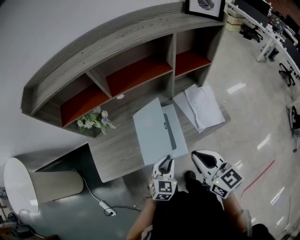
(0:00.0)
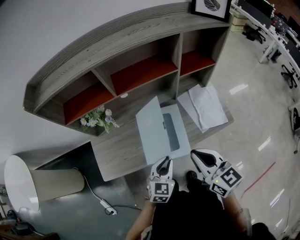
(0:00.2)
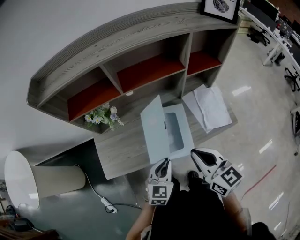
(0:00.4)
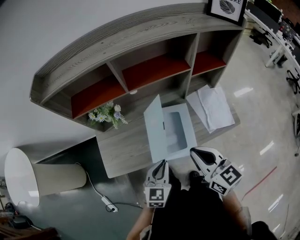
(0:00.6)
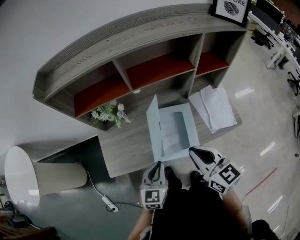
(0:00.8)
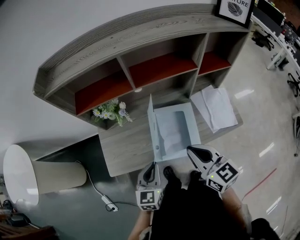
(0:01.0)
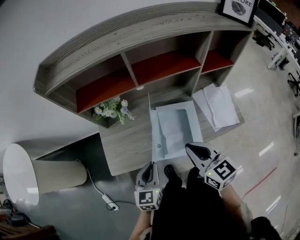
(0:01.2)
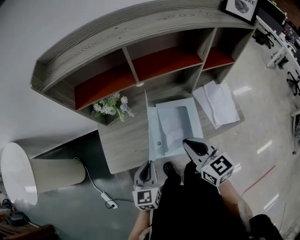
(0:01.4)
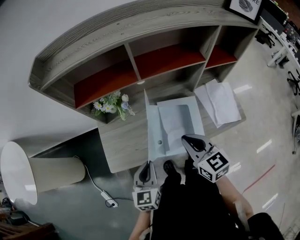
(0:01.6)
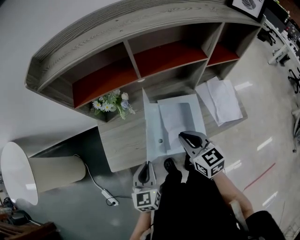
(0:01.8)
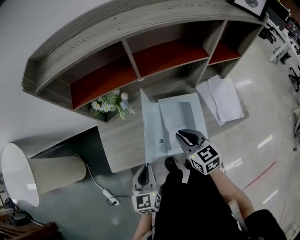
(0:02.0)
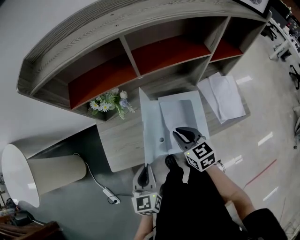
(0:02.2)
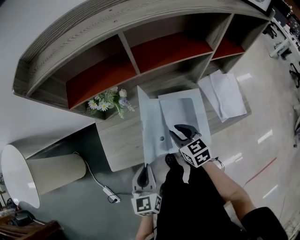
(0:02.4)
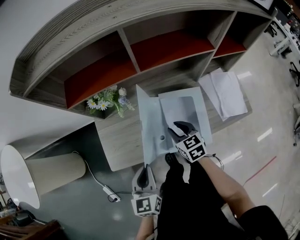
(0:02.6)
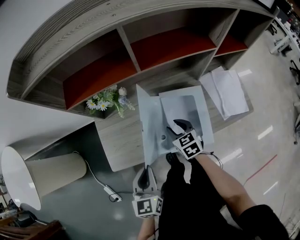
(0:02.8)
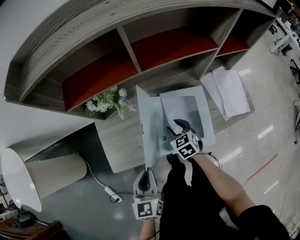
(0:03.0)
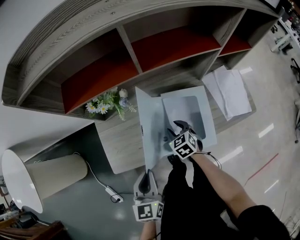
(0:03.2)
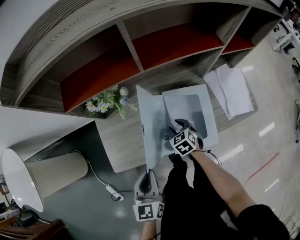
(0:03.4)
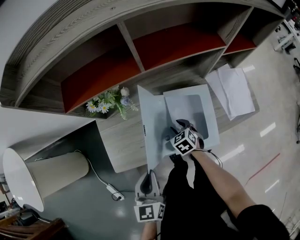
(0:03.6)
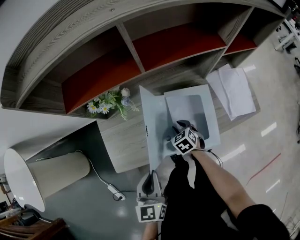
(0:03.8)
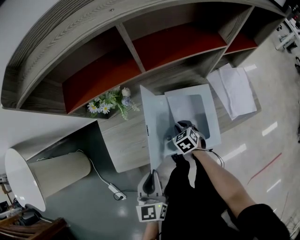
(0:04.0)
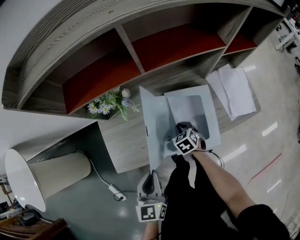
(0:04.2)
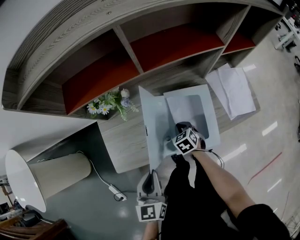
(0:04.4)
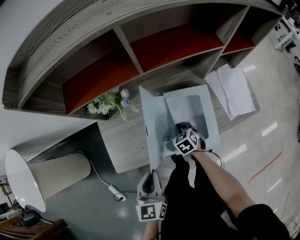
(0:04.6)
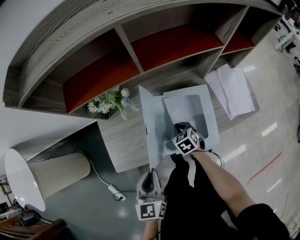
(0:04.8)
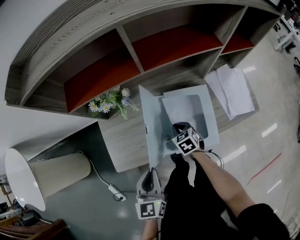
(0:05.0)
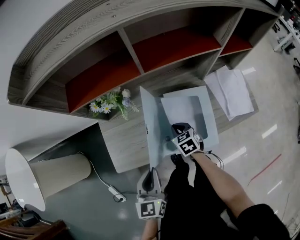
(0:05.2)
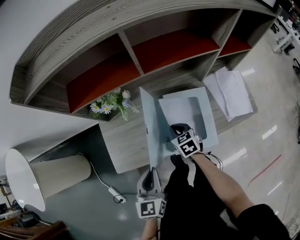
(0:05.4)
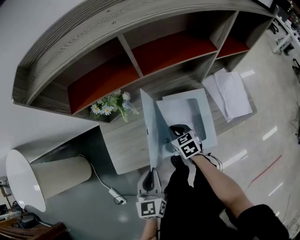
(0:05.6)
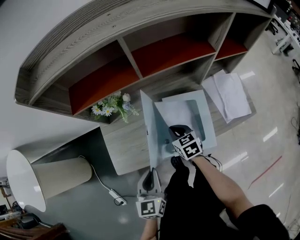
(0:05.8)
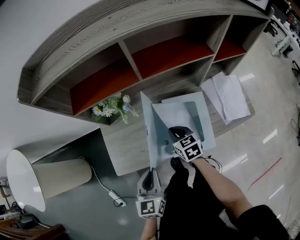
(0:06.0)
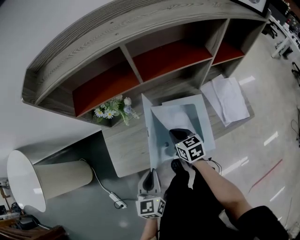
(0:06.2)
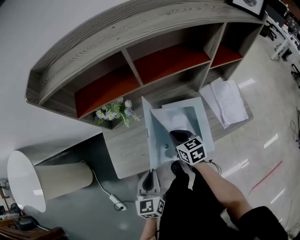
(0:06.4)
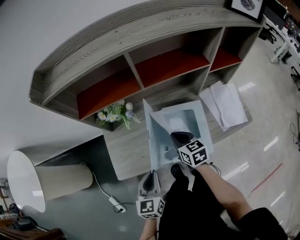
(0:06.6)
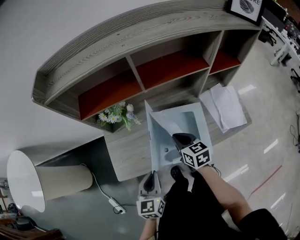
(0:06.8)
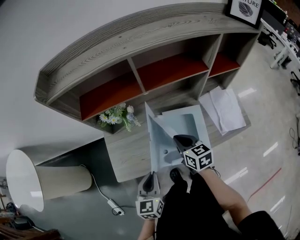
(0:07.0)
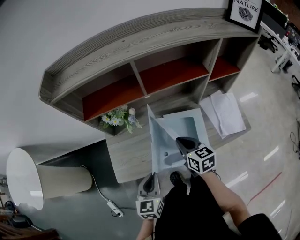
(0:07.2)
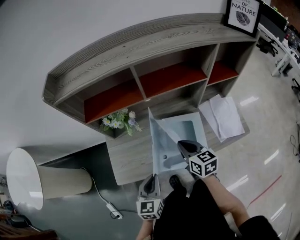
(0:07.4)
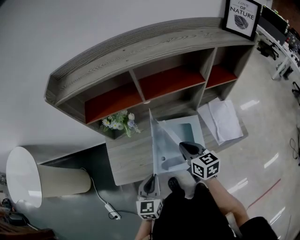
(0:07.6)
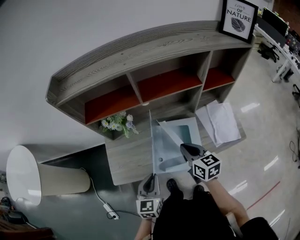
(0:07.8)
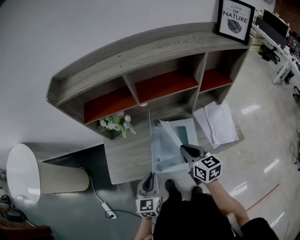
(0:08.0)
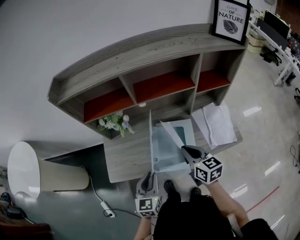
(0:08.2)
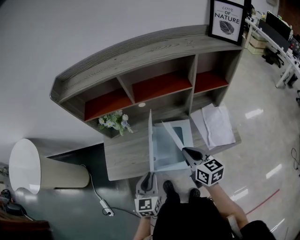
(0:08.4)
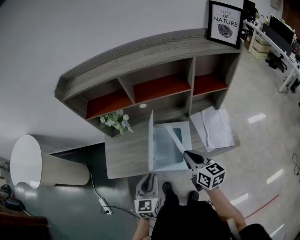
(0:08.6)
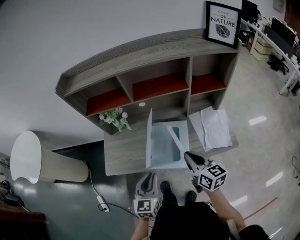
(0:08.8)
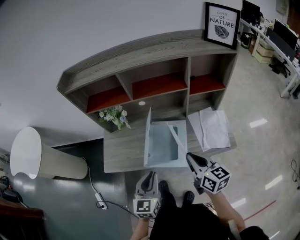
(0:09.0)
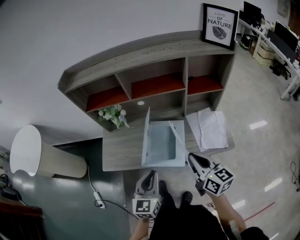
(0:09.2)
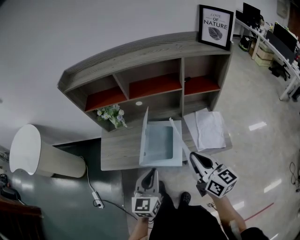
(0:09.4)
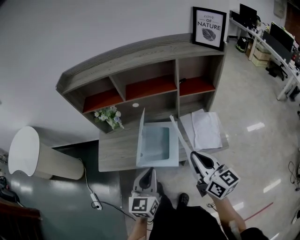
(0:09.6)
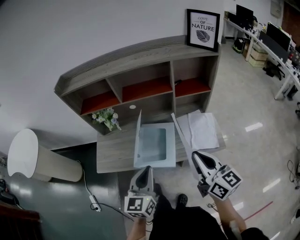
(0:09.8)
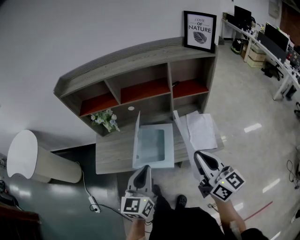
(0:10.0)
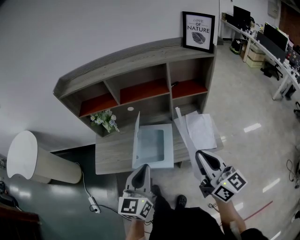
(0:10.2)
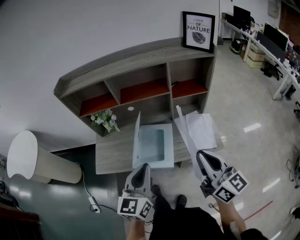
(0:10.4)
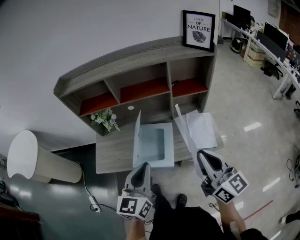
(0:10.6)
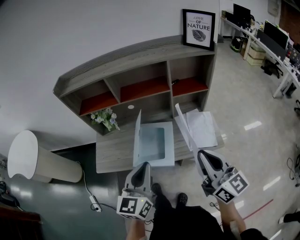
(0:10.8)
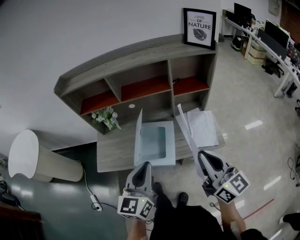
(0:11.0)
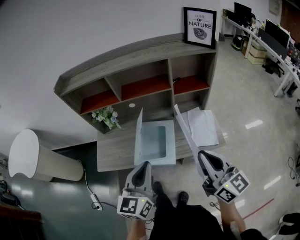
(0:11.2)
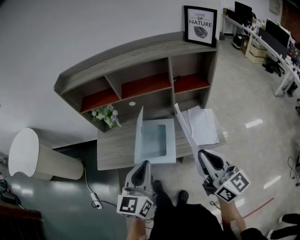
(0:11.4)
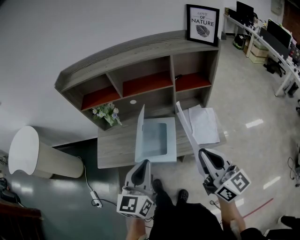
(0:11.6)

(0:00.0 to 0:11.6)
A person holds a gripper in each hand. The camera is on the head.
0:00.0 - 0:01.4: The right gripper goes about 15 cm to the left and forward. The left gripper heads to the left, covering some 20 cm, and changes its angle by approximately 30 degrees.
0:01.4 - 0:02.8: The right gripper heads downward and forward, covering some 25 cm, changes its angle by roughly 20 degrees, and opens its fingers.
0:02.8 - 0:04.4: The right gripper moves downward, approximately 10 cm, and closes its fingers.
0:04.4 - 0:05.8: The right gripper shifts approximately 10 cm upward, and rotates about 20 degrees.
0:05.8 - 0:07.2: The right gripper is displaced upward by some 10 cm.
0:07.2 - 0:08.8: Both grippers travel together to the right, backward and upward, roughly 15 cm.
0:08.8 - 0:10.2: The left gripper moves upward and to the right, roughly 15 cm; the right gripper is displaced upward, to the right and backward by approximately 20 cm, and rotates roughly 20 degrees.
0:10.2 - 0:11.6: The grippers make only small movements.

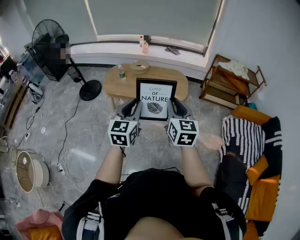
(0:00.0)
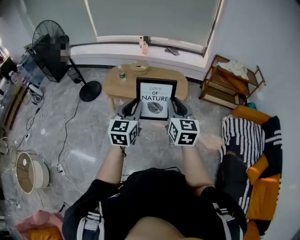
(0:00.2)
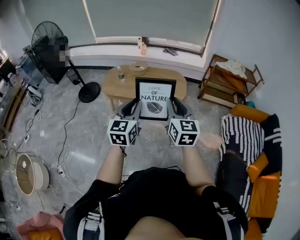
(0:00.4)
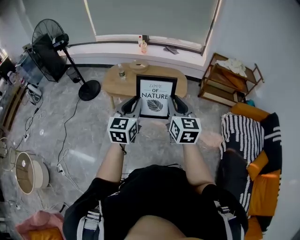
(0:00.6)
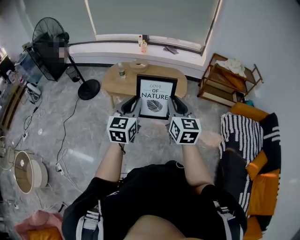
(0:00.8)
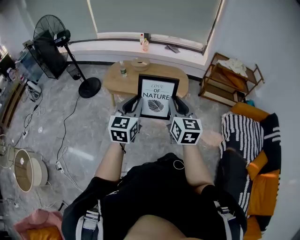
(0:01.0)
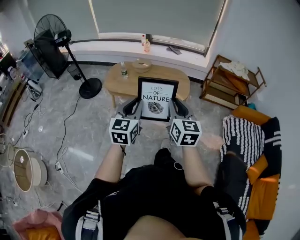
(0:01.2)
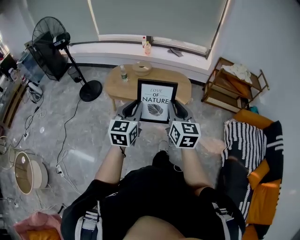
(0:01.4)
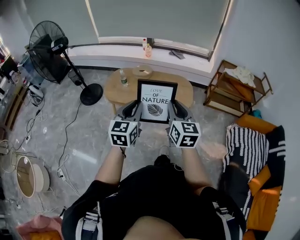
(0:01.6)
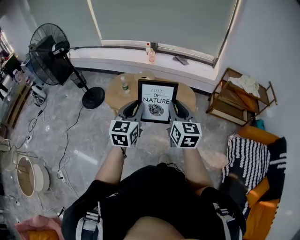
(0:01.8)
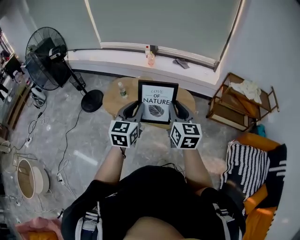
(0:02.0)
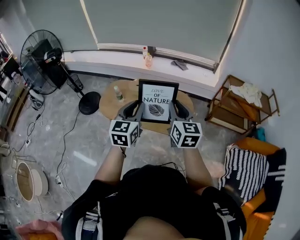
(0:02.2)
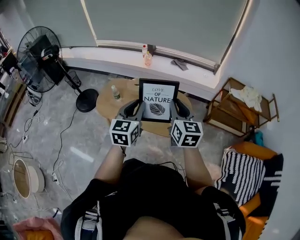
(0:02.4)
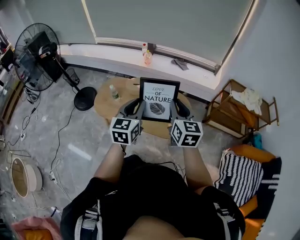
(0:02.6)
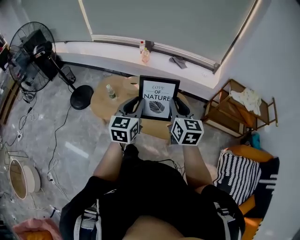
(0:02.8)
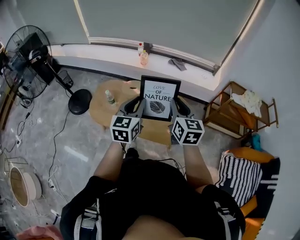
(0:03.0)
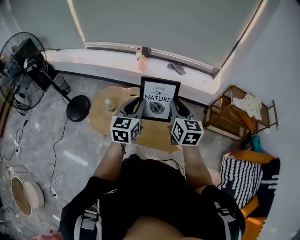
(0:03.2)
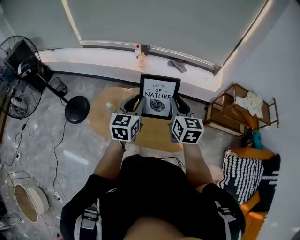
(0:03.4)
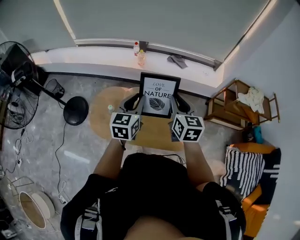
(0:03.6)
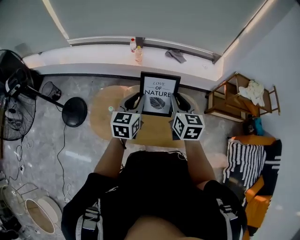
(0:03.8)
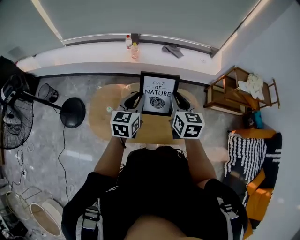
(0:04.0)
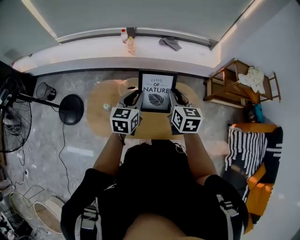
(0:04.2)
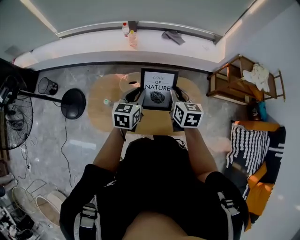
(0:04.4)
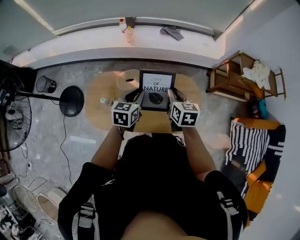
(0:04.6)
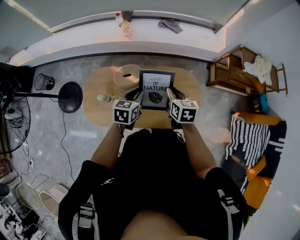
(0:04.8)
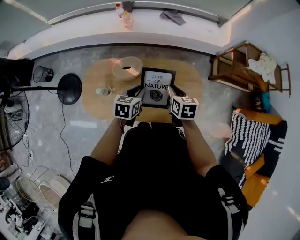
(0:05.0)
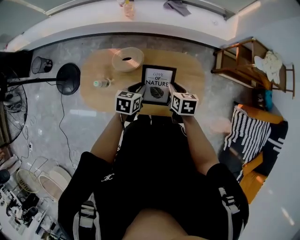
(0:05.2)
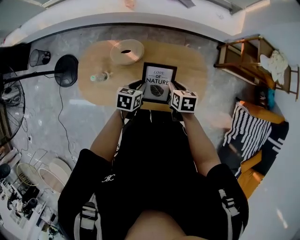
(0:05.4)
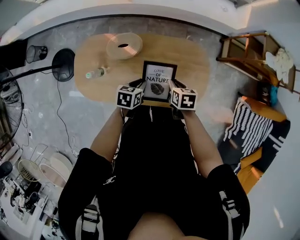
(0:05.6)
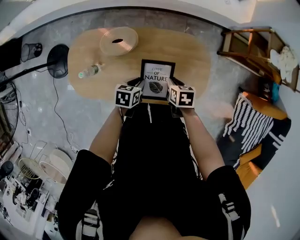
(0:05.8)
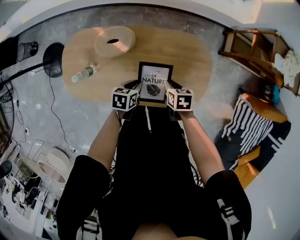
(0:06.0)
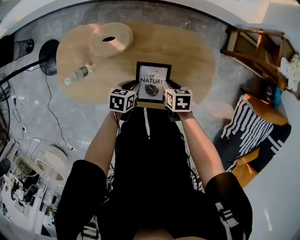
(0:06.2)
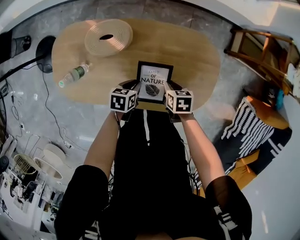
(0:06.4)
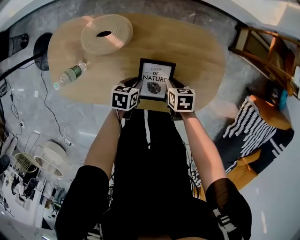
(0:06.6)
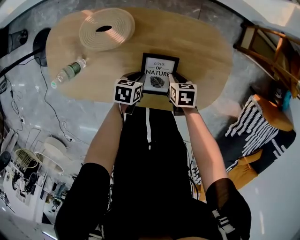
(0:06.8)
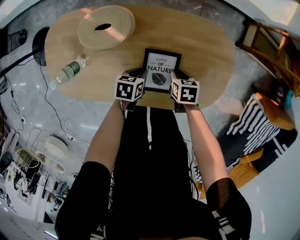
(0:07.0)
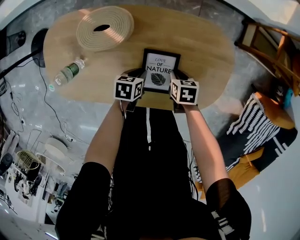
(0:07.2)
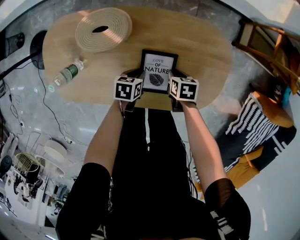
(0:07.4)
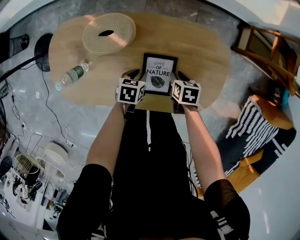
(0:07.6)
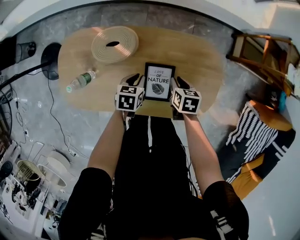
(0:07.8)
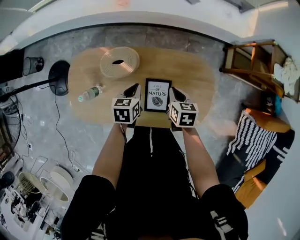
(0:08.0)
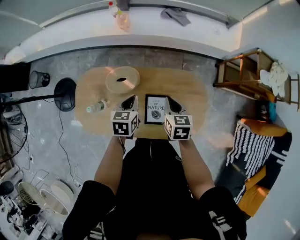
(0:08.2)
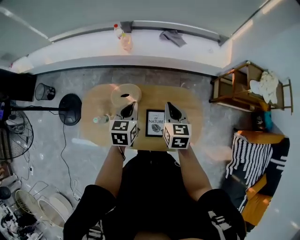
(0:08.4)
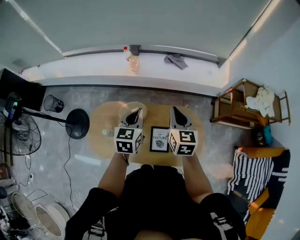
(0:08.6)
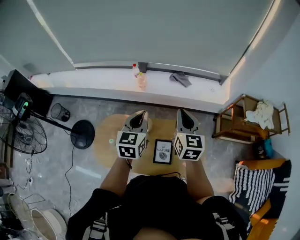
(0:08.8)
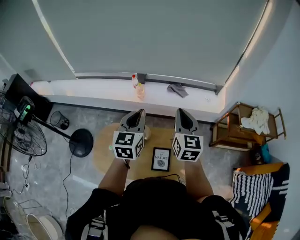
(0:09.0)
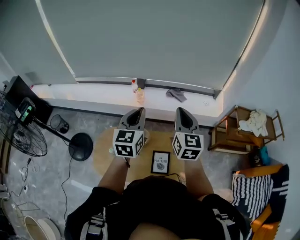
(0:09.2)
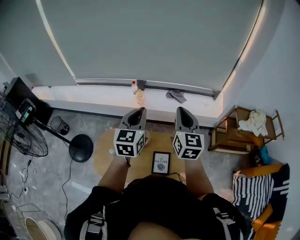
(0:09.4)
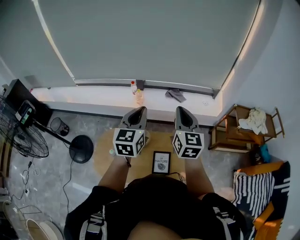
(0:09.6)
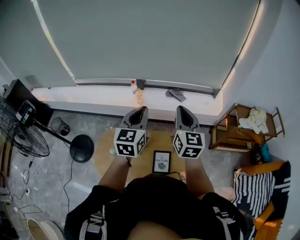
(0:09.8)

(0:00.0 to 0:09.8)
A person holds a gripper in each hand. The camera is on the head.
0:00.0 - 0:01.4: The right gripper shifts by approximately 5 cm. The left gripper changes place by roughly 5 cm.
0:01.4 - 0:02.8: The two grippers travel together, forward, some 50 cm.
0:02.8 - 0:04.2: Both grippers move forward and to the left, roughly 35 cm. The left gripper swivels some 20 degrees. Meanwhile the right gripper turns by about 20 degrees.
0:04.2 - 0:05.6: Both grippers travel together downward, approximately 30 cm. The left gripper tips its fingers downward by about 30 degrees; the right gripper angles its fingers downward, by some 30 degrees.
0:05.6 - 0:07.0: The grippers both shift downward by about 30 cm.
0:07.0 - 0:08.4: Both grippers move upward, about 50 cm. The left gripper rotates roughly 40 degrees. The right gripper angles its fingers upward, by about 40 degrees.
0:08.4 - 0:09.8: The two grippers go approximately 30 cm upward. The right gripper tilts its fingers approximately 30 degrees upward. The left gripper swivels roughly 30 degrees.

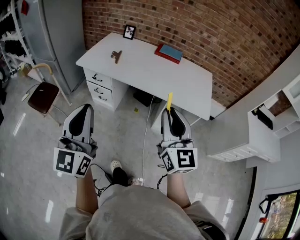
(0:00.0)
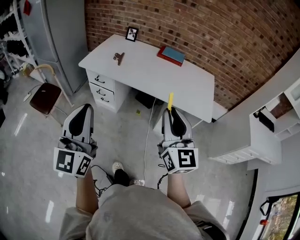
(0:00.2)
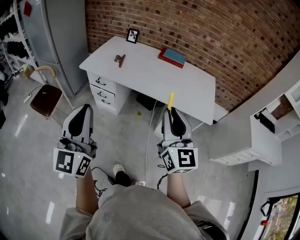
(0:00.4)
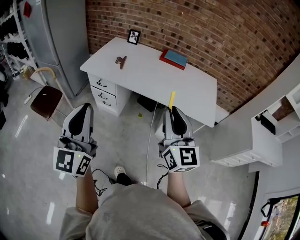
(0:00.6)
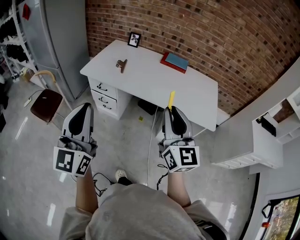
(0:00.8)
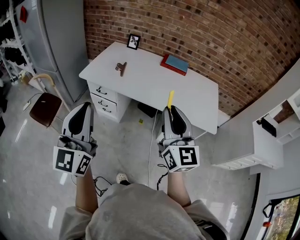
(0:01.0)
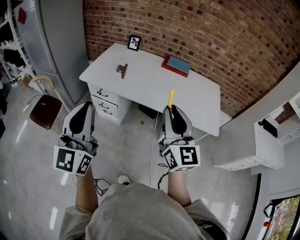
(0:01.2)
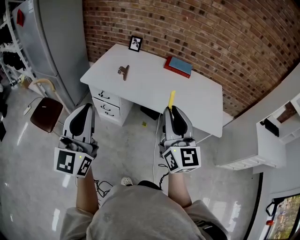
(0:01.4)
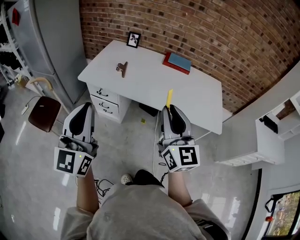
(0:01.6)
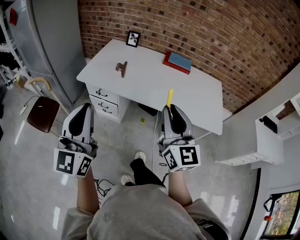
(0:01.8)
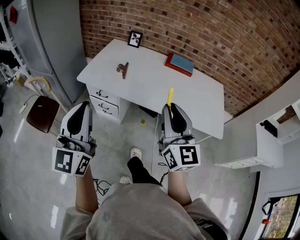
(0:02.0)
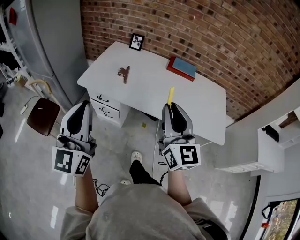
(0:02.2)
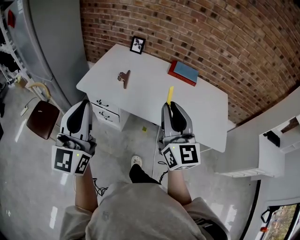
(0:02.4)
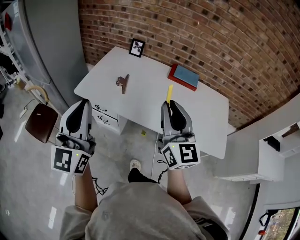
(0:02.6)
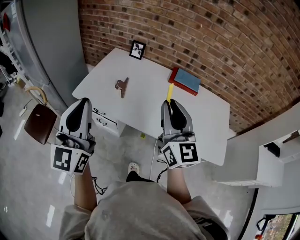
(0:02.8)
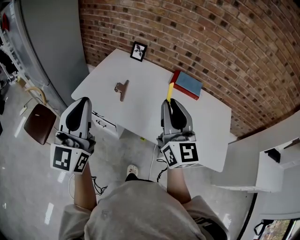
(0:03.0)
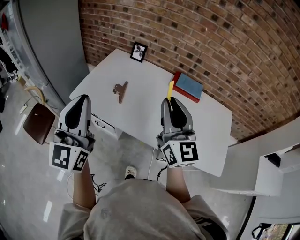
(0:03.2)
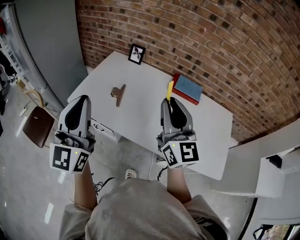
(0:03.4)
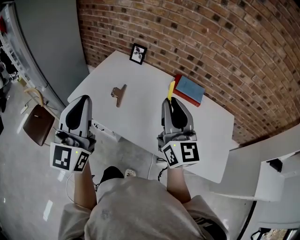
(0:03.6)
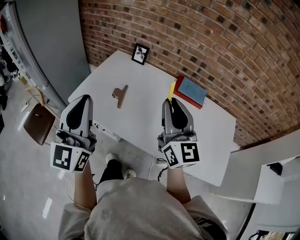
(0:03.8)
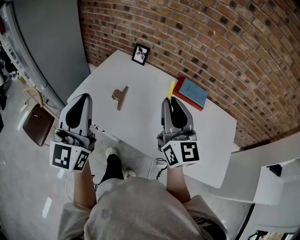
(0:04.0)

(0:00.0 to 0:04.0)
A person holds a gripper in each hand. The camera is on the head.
0:00.0 - 0:01.4: The grippers both shift forward and to the left by roughly 15 cm.
0:01.4 - 0:02.6: The grippers both shift forward by about 20 cm.
0:02.6 - 0:04.0: The two grippers go roughly 15 cm forward.
